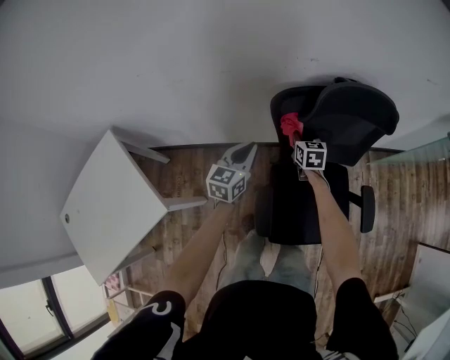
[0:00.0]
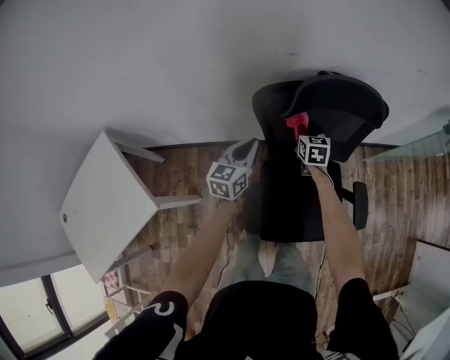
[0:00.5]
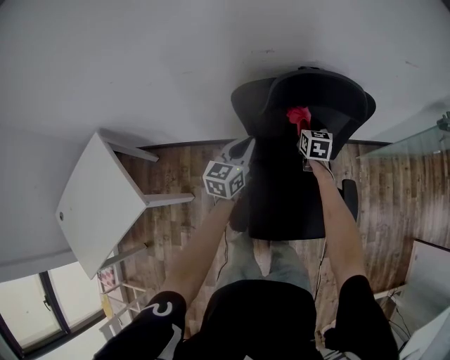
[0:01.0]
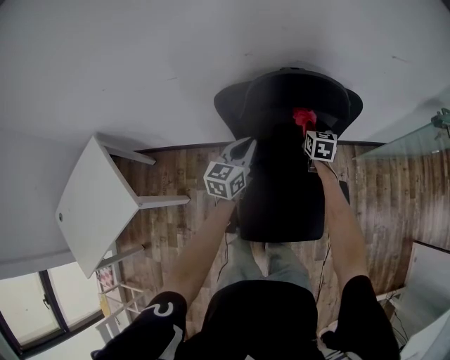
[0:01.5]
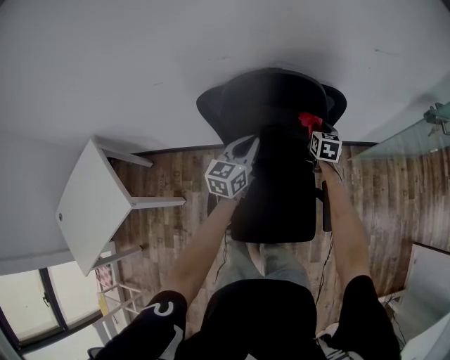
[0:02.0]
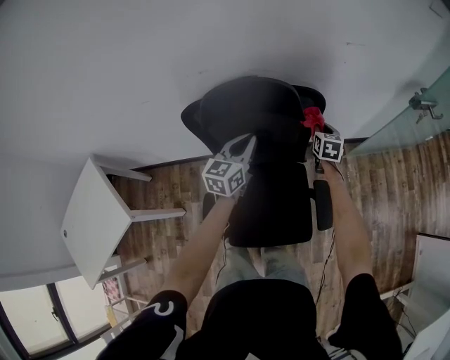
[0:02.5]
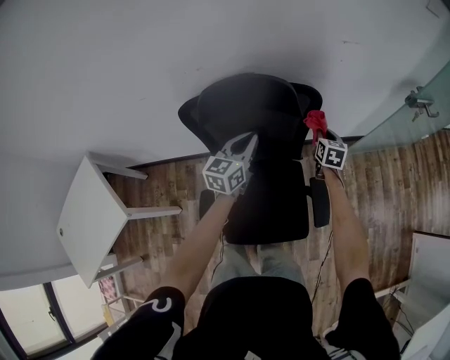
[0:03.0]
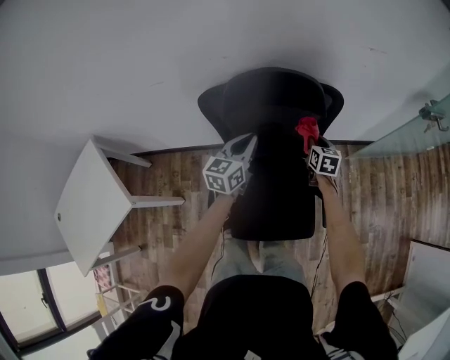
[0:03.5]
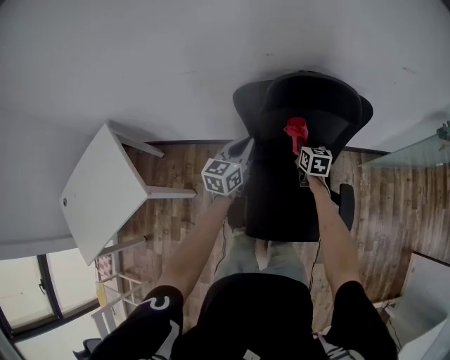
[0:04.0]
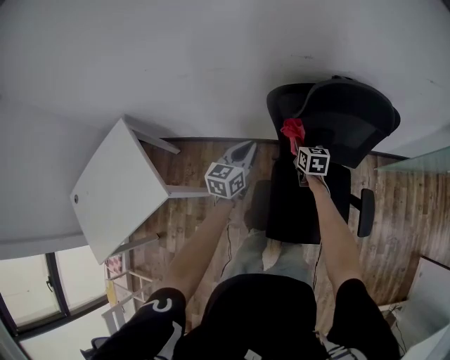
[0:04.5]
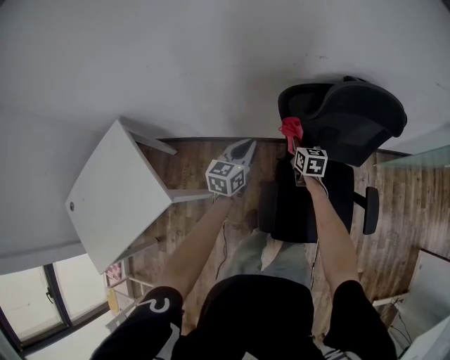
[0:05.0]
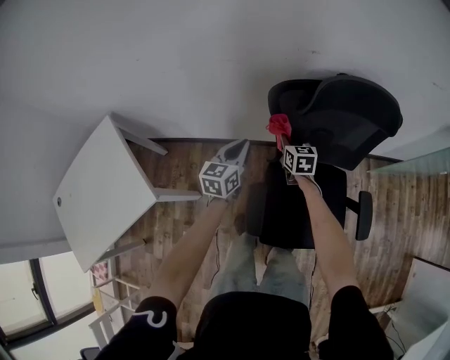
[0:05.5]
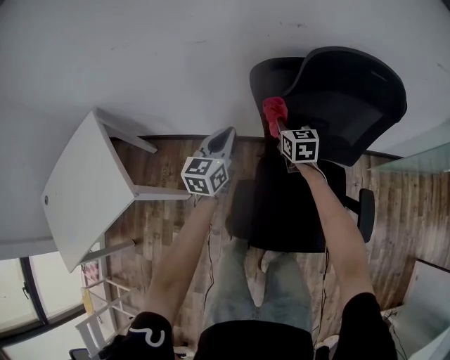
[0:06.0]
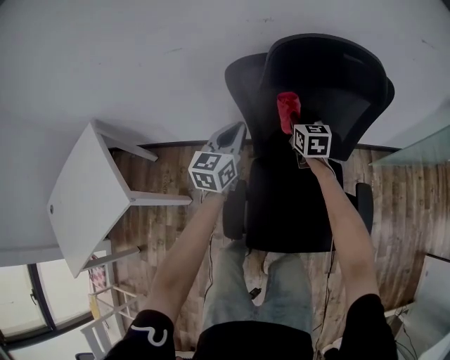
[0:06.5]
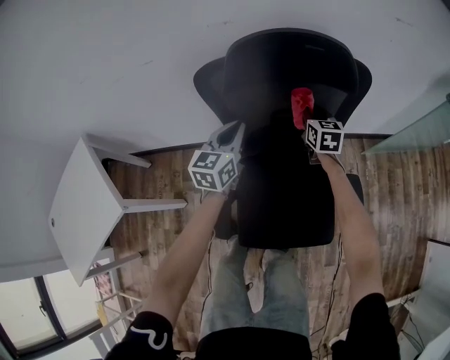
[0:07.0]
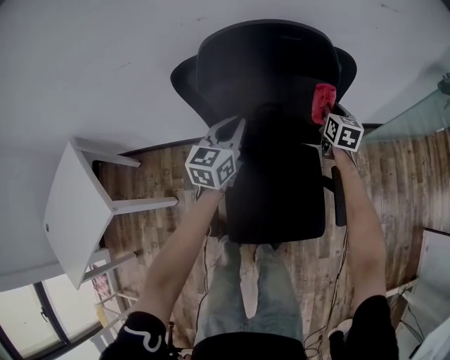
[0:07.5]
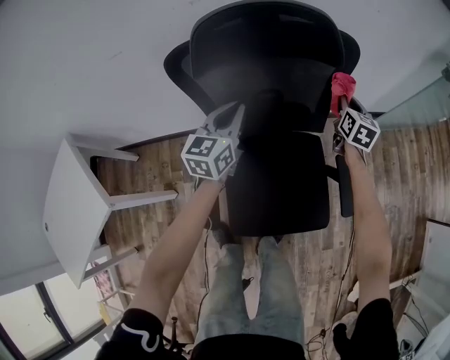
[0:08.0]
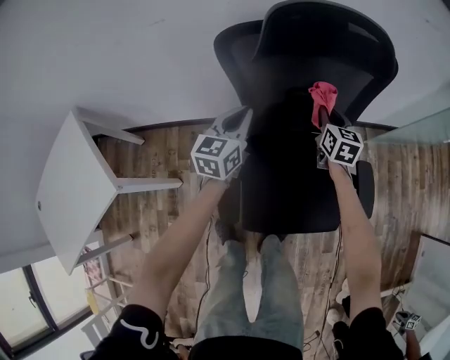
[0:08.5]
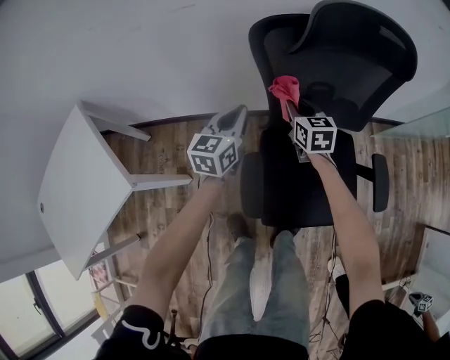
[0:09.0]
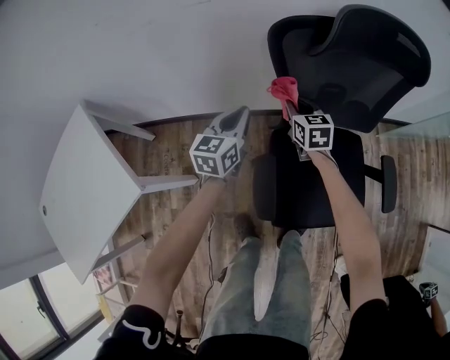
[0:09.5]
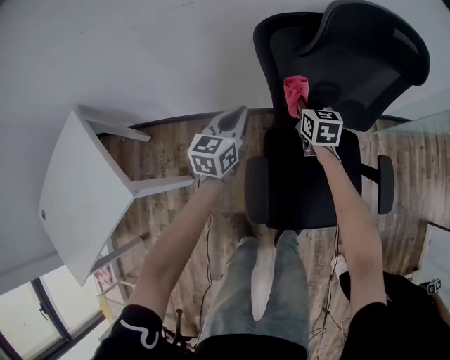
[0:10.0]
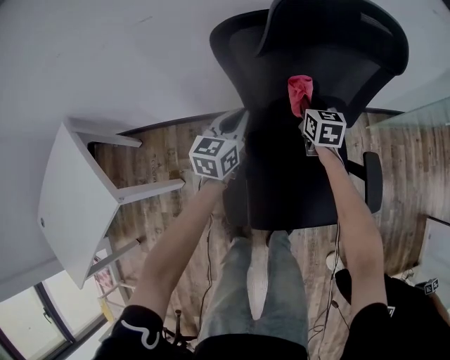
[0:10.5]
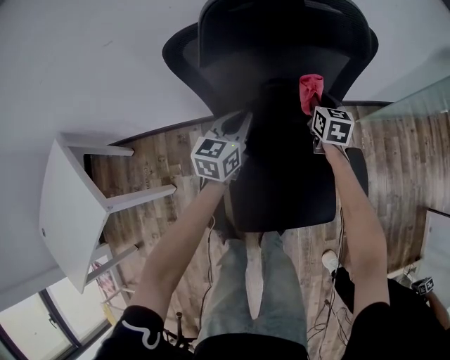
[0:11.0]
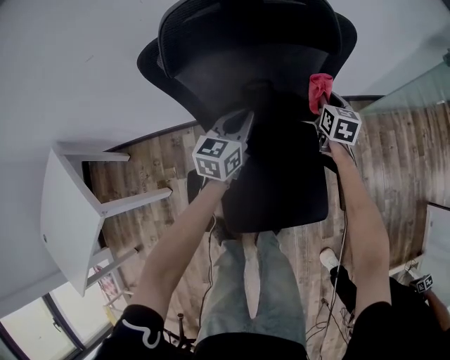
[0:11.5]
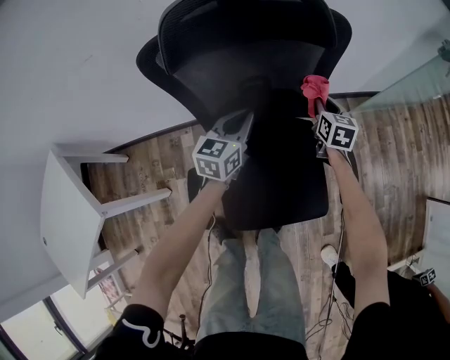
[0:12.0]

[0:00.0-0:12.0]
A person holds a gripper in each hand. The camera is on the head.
0:00.0 to 0:02.0: The two grippers go approximately 30 cm to the right.
0:02.0 to 0:04.0: The right gripper goes roughly 20 cm to the left and backward. Meanwhile the left gripper shifts roughly 10 cm to the left.
0:04.0 to 0:06.0: The right gripper heads to the left, covering roughly 15 cm, while the left gripper travels to the left and downward by roughly 15 cm.
0:06.0 to 0:08.0: The left gripper moves to the right, approximately 20 cm. The right gripper is displaced to the right by some 40 cm, and swivels roughly 30 degrees.
0:08.0 to 0:10.0: The right gripper goes approximately 35 cm to the left, and changes its angle by about 20 degrees, while the left gripper goes approximately 20 cm to the left.
0:10.0 to 0:12.0: The grippers both shift to the right by roughly 30 cm.

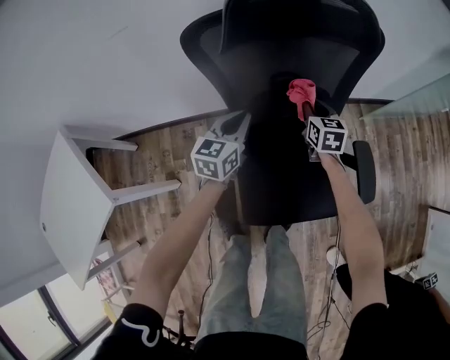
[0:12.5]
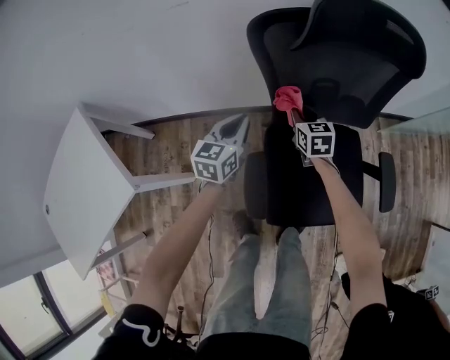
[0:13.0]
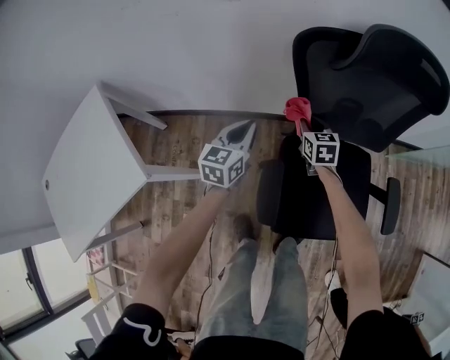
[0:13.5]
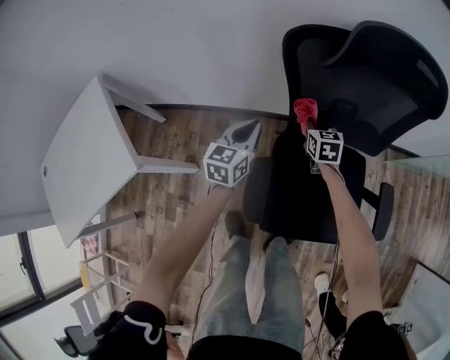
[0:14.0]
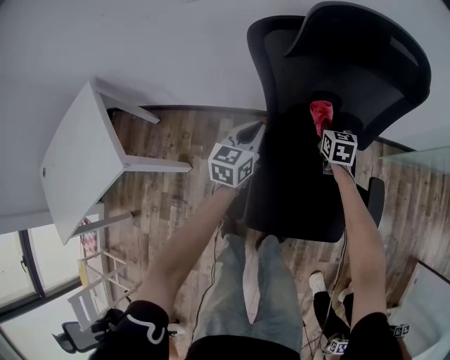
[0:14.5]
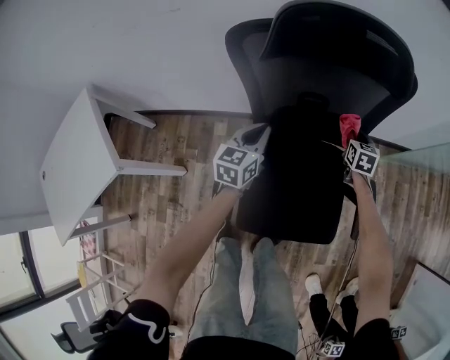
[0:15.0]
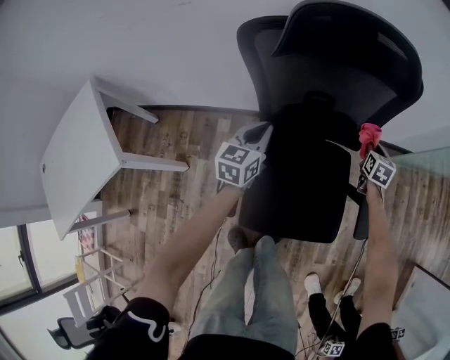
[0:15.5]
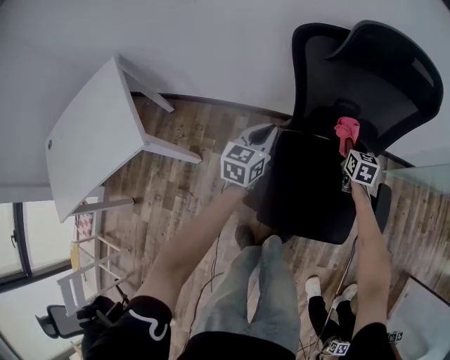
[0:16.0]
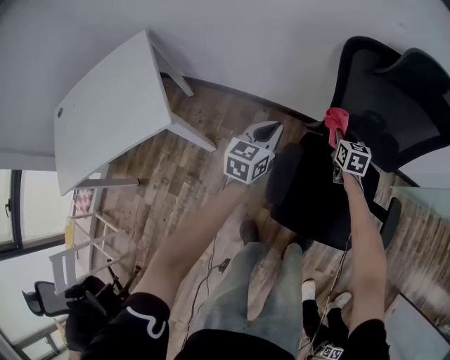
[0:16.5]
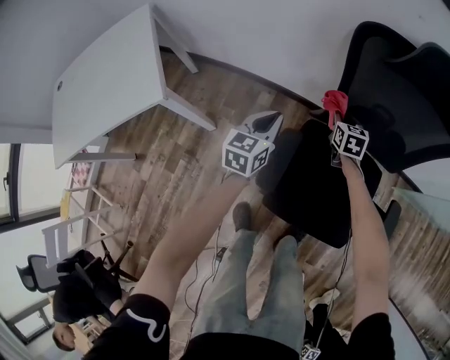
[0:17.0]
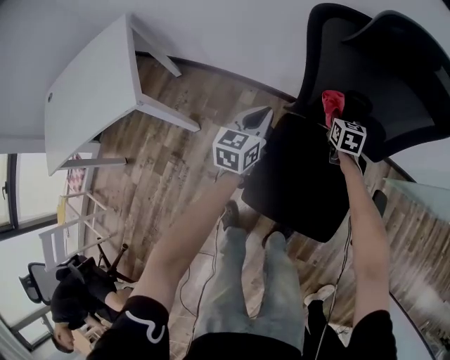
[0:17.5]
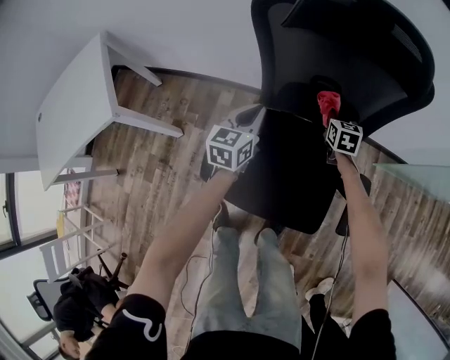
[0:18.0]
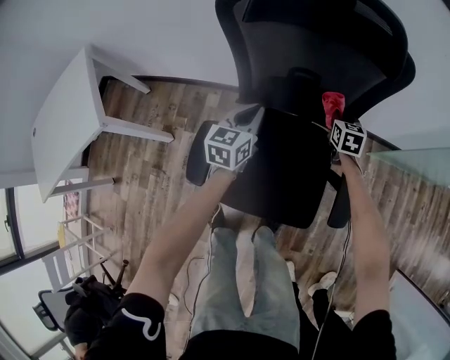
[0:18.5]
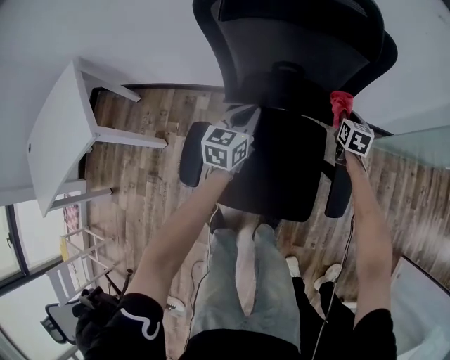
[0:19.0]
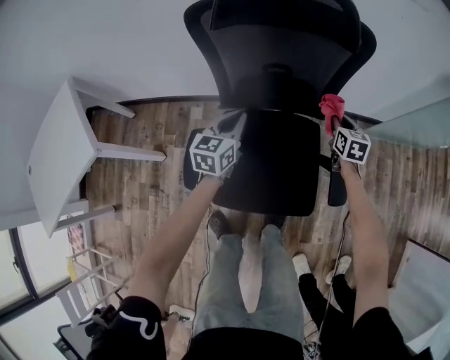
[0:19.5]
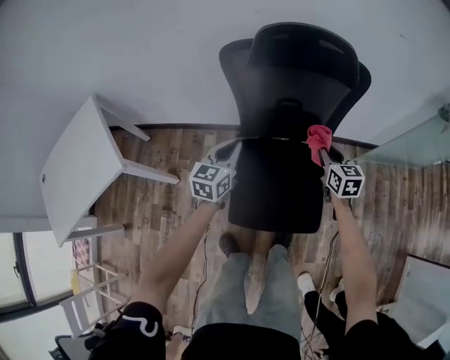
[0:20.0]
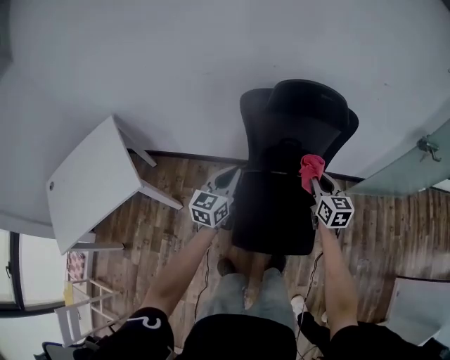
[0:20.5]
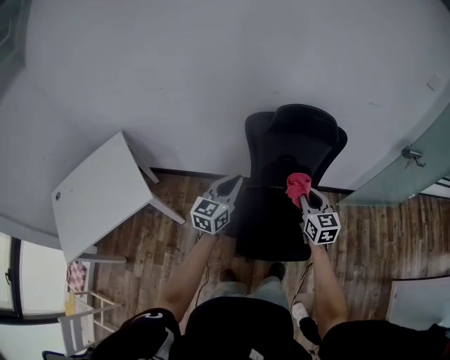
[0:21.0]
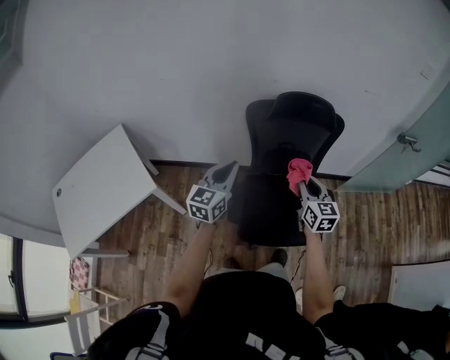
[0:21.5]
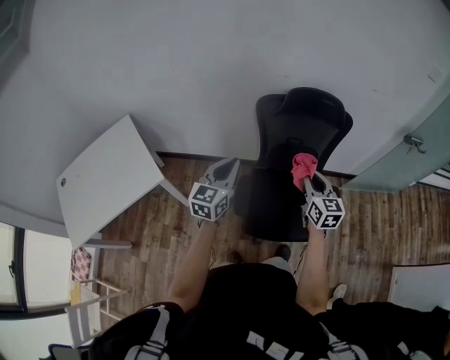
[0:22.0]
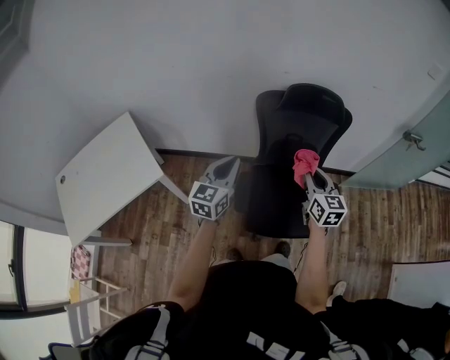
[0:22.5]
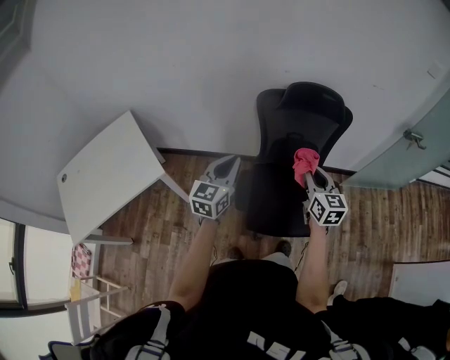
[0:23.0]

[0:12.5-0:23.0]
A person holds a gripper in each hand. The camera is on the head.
0:12.5 to 0:14.5: The right gripper goes to the left and returns, some 25 cm each way; the left gripper moves some 20 cm to the left and comes back.
0:14.5 to 0:16.5: Both grippers travel together to the left and backward, approximately 15 cm.
0:16.5 to 0:19.0: The grippers both shift to the right by roughly 30 cm.
0:19.0 to 0:21.0: Both grippers move upward, backward and to the left, approximately 40 cm. The right gripper turns by some 30 degrees.
0:21.0 to 0:23.0: The right gripper travels backward by roughly 5 cm. The left gripper heads backward and to the left, covering approximately 10 cm.

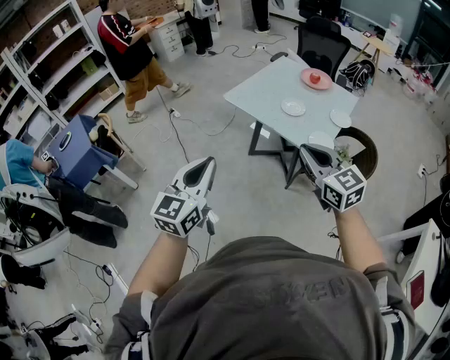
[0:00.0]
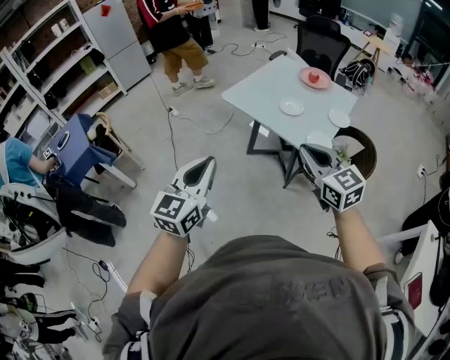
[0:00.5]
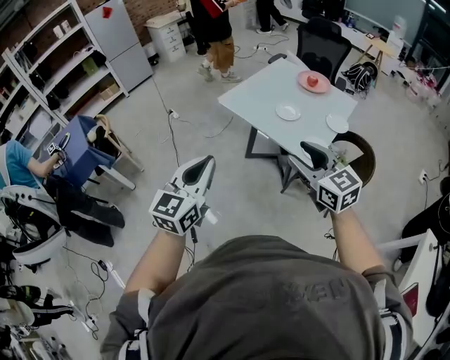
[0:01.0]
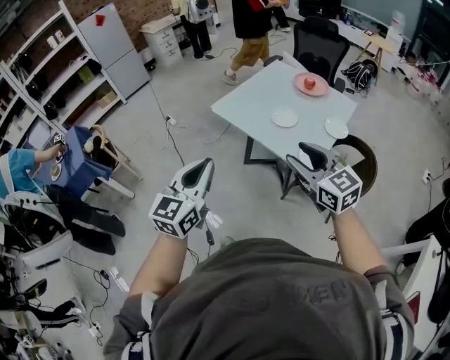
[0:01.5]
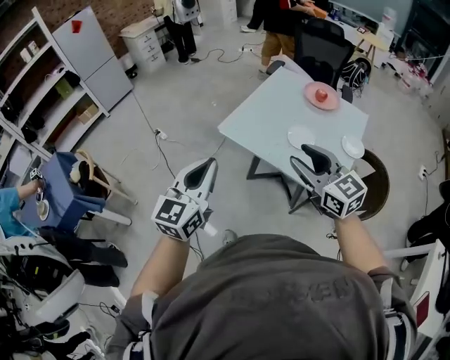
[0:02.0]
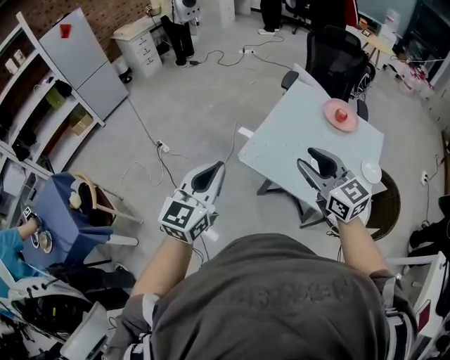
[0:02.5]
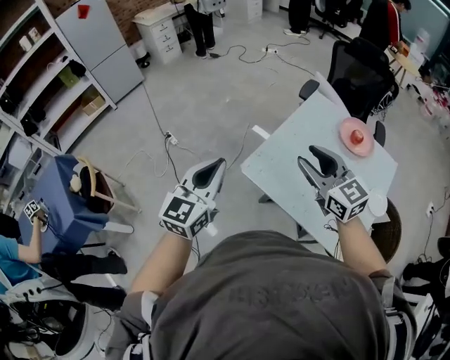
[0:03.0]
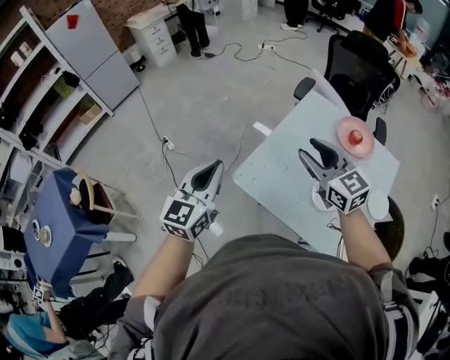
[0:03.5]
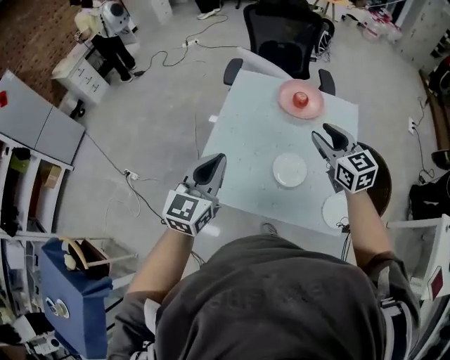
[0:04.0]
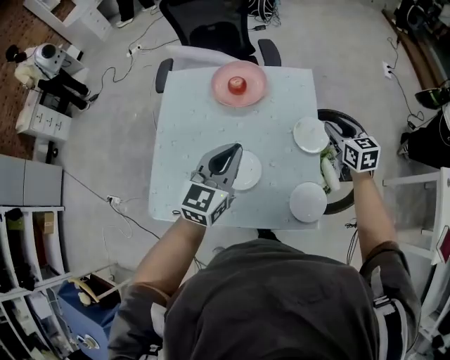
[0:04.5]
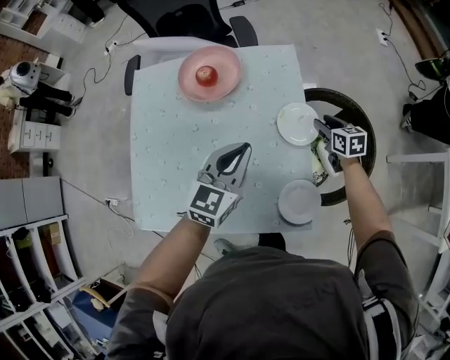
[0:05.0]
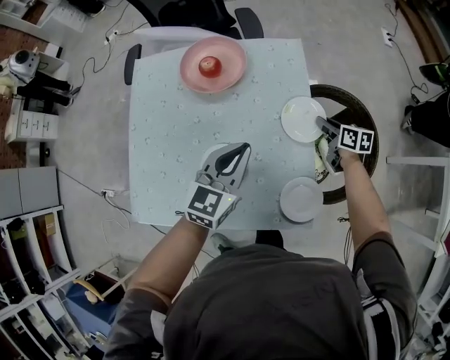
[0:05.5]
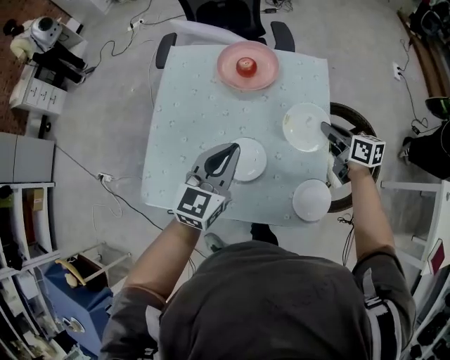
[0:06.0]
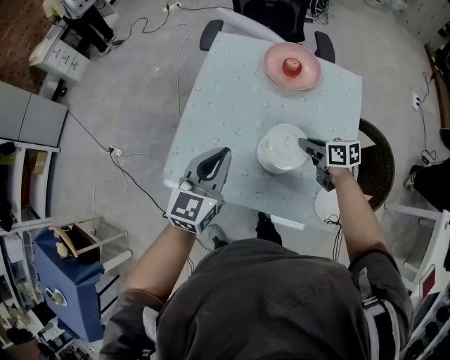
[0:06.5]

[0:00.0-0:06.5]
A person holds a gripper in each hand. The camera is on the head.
0:00.0 to 0:02.0: The two grippers go about 30 cm forward. The right gripper opens up.
0:02.0 to 0:04.5: The pair of grippers is taken roughly 50 cm. The left gripper changes its angle by some 40 degrees, while the right gripper rotates roughly 60 degrees.
0:04.5 to 0:06.5: The right gripper goes up and down, roughly 20 cm each way, reversing 2 times, turns by roughly 40 degrees, and closes; the left gripper moves about 20 cm.
